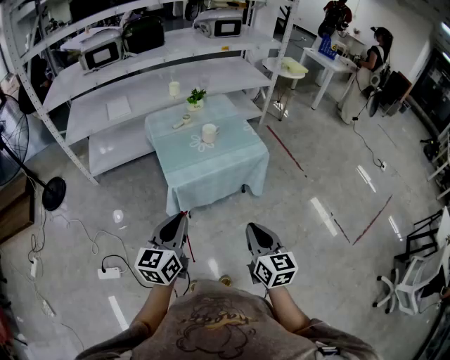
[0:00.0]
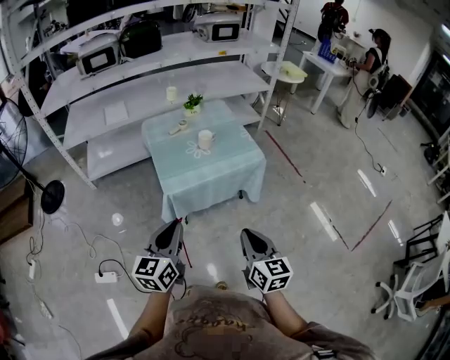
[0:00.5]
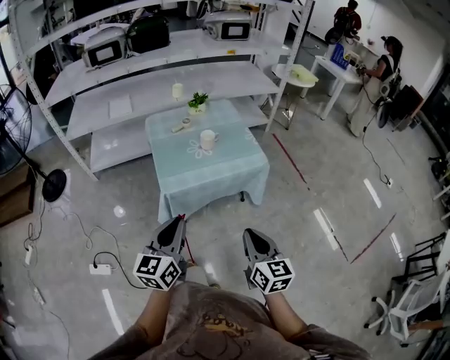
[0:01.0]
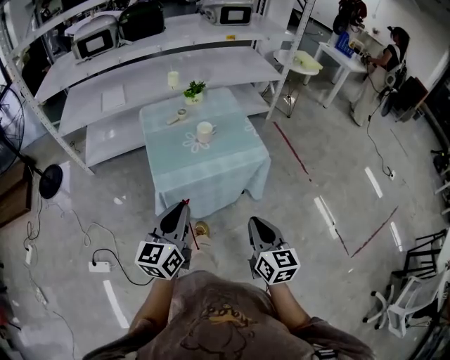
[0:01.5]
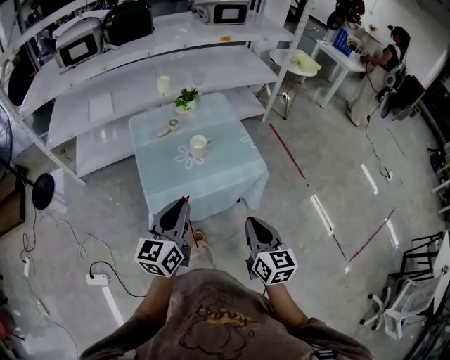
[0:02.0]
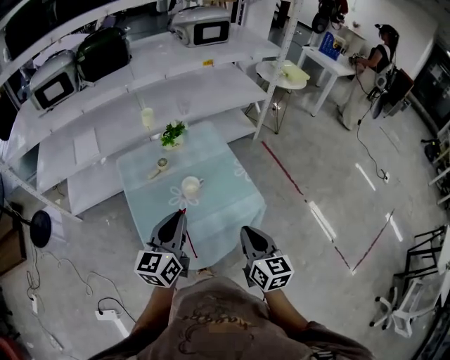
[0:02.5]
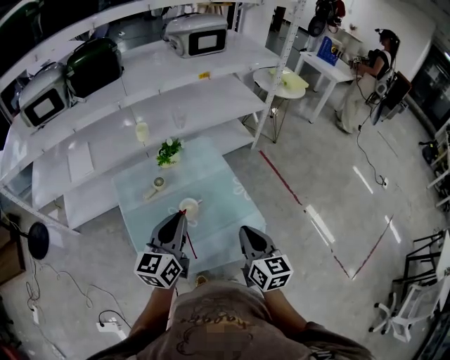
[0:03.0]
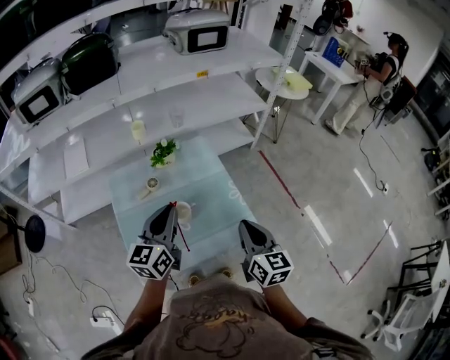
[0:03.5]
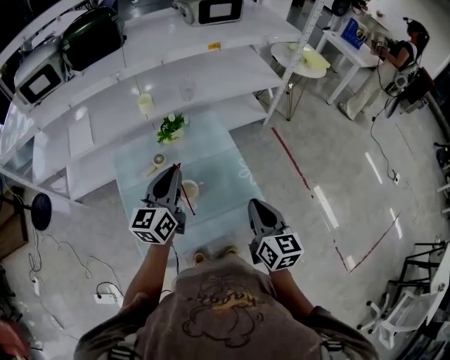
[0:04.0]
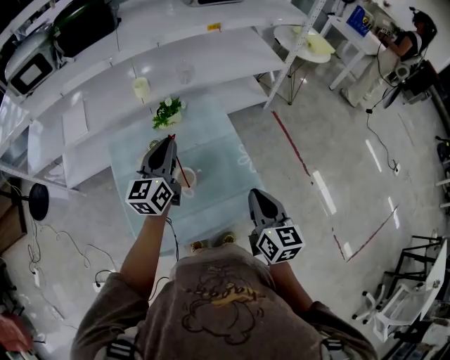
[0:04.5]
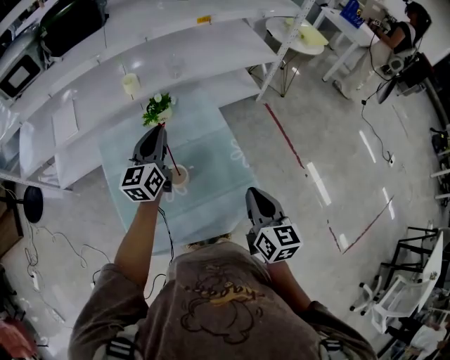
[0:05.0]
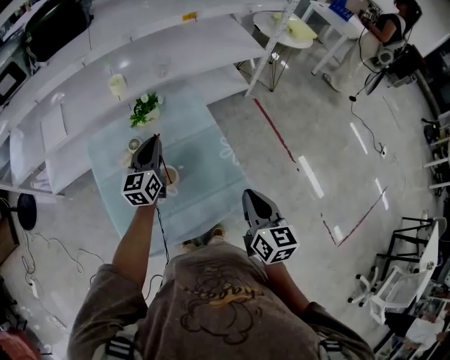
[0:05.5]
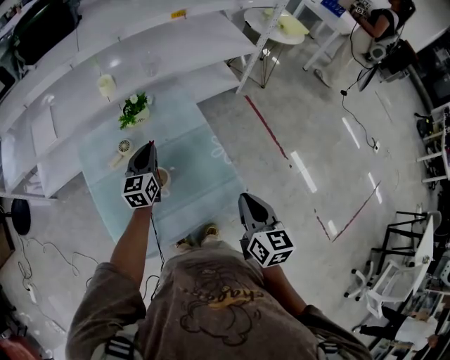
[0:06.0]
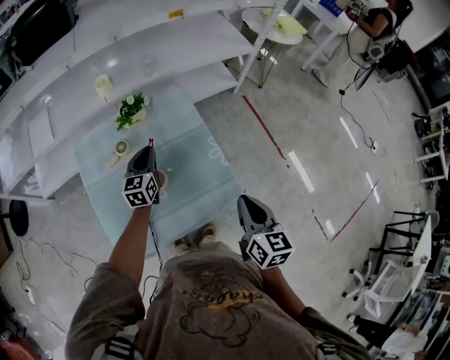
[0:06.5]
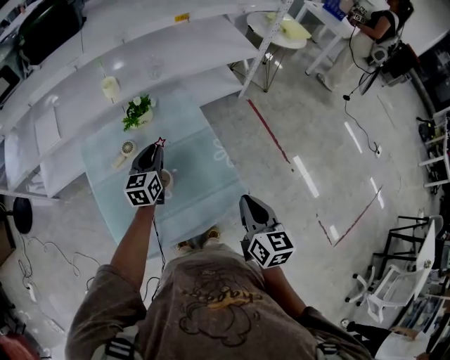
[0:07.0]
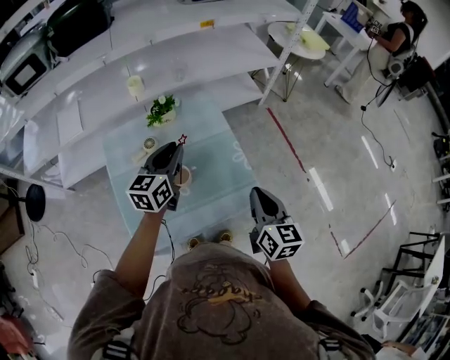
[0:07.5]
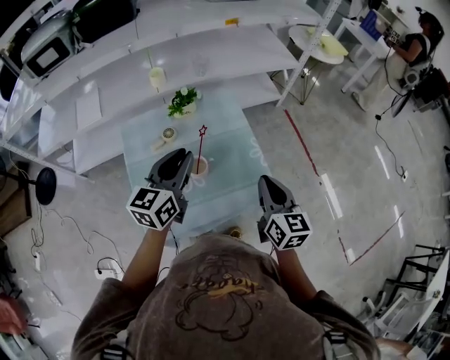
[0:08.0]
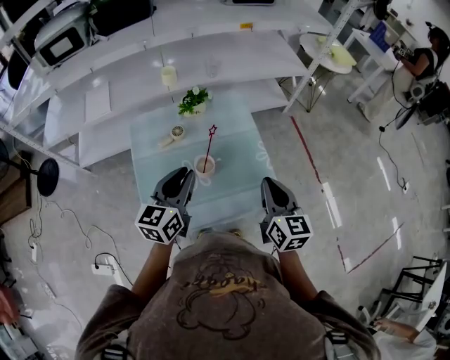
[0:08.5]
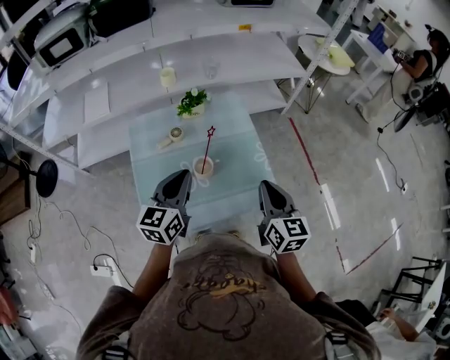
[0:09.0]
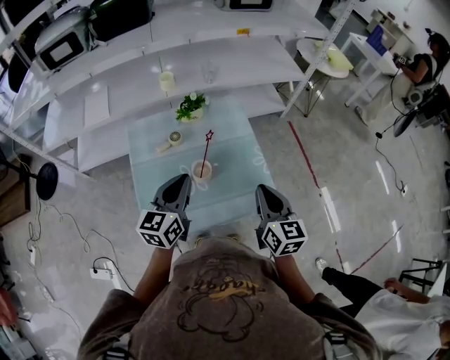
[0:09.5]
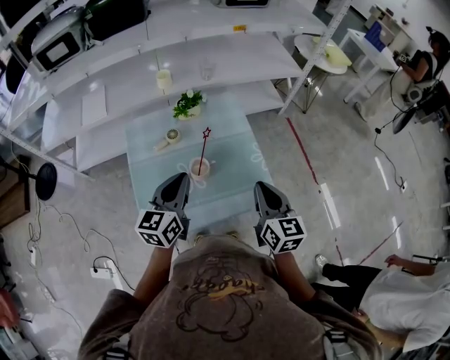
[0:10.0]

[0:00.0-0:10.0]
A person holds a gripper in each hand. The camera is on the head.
0:00.0 to 0:02.0: The two grippers go some 25 cm forward.
0:02.0 to 0:04.0: Both grippers travel together forward, some 35 cm.
0:04.0 to 0:06.0: The left gripper goes some 20 cm downward and forward, while the right gripper moves roughly 5 cm.
0:06.0 to 0:08.0: The right gripper heads to the left, covering some 5 cm; the left gripper moves upward and backward, some 20 cm.
0:08.0 to 0:10.0: The left gripper heads backward, covering about 5 cm.

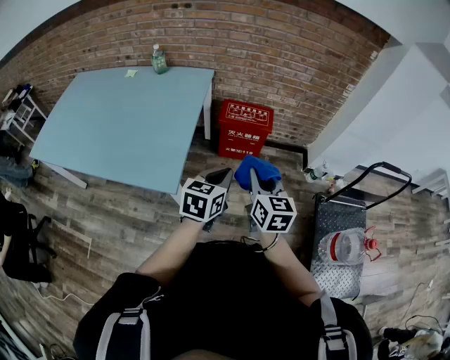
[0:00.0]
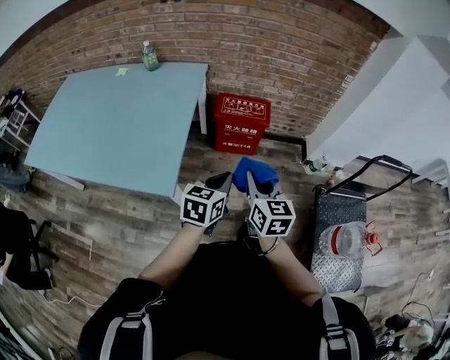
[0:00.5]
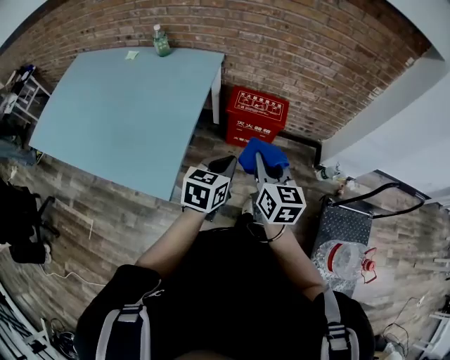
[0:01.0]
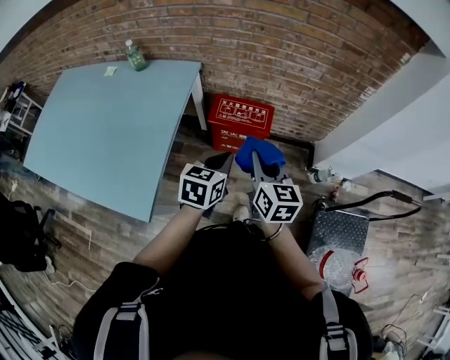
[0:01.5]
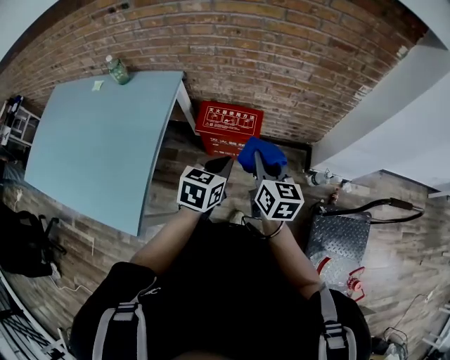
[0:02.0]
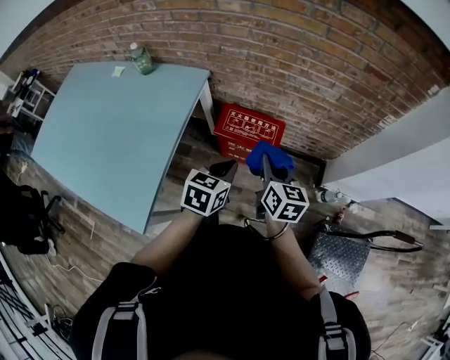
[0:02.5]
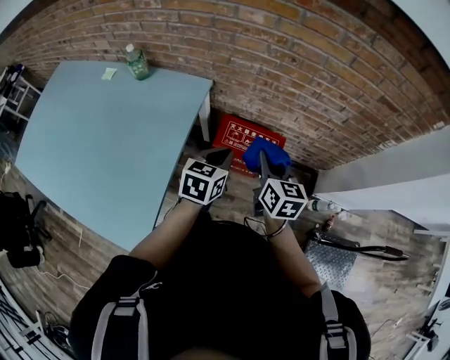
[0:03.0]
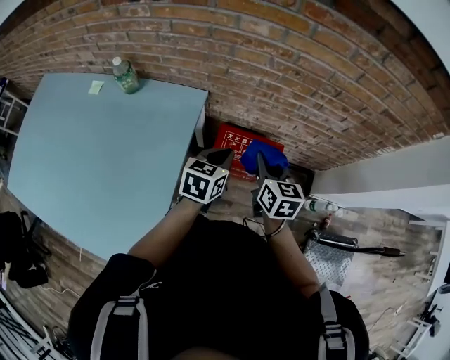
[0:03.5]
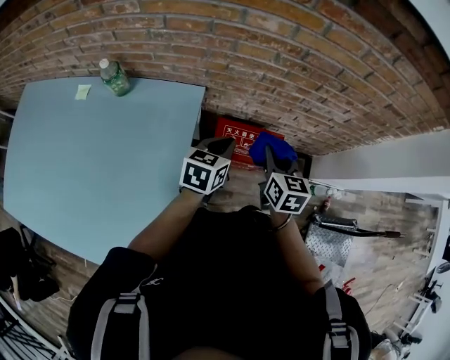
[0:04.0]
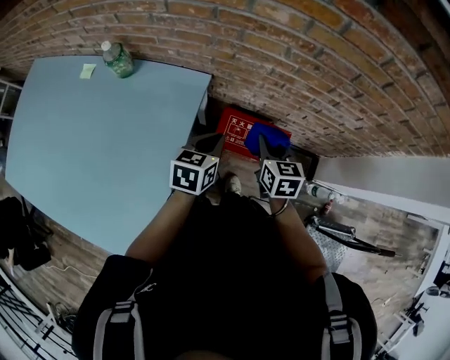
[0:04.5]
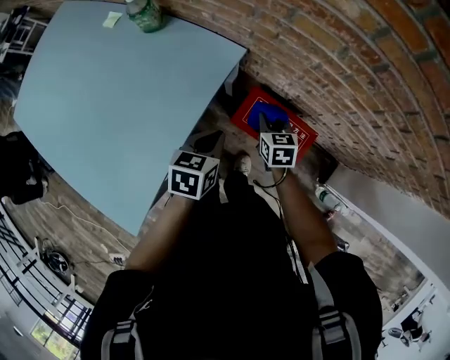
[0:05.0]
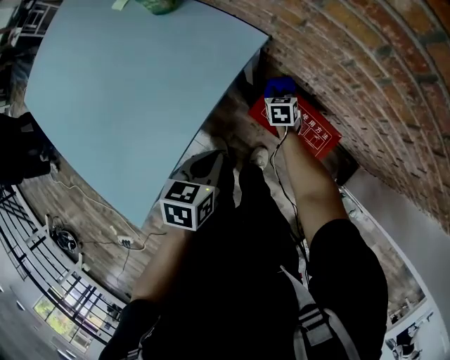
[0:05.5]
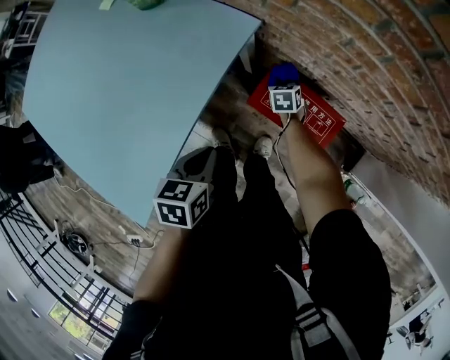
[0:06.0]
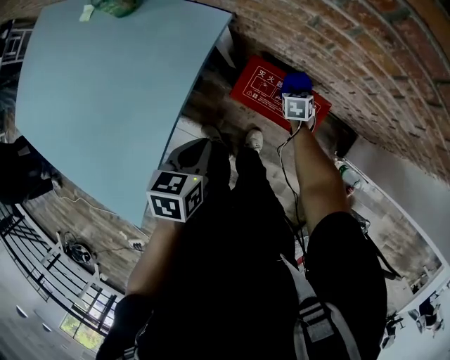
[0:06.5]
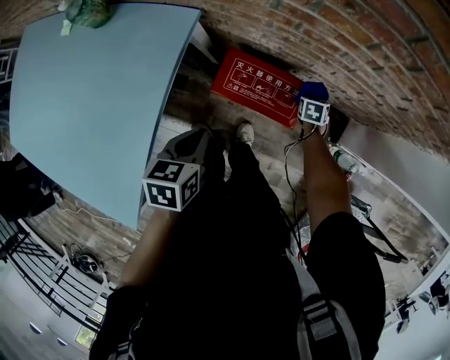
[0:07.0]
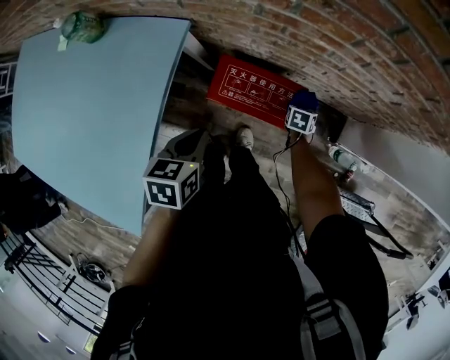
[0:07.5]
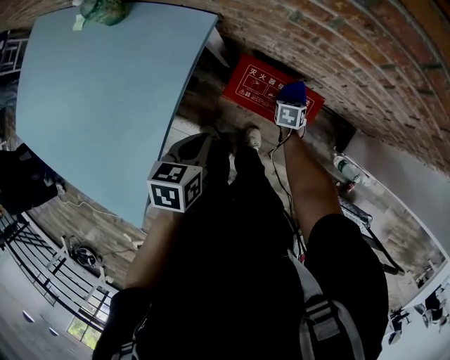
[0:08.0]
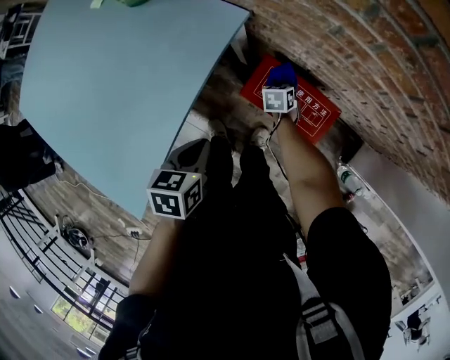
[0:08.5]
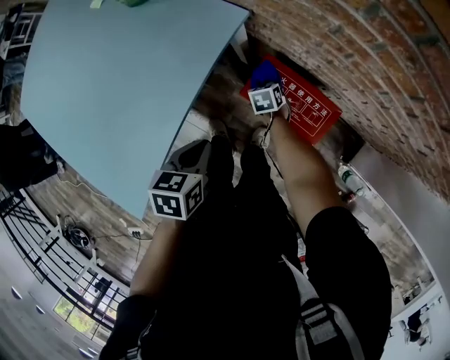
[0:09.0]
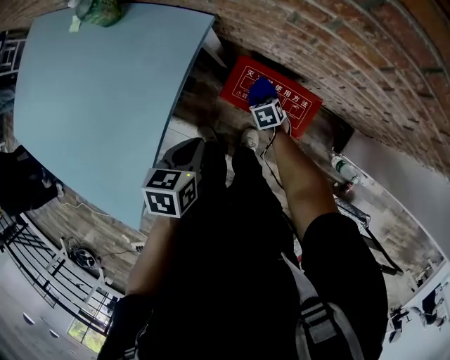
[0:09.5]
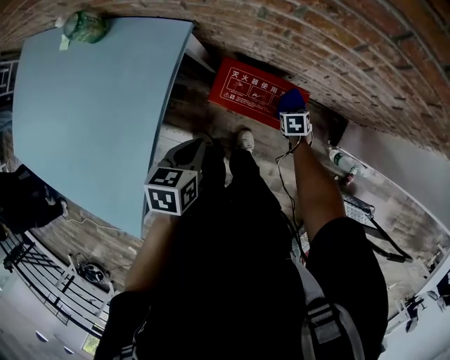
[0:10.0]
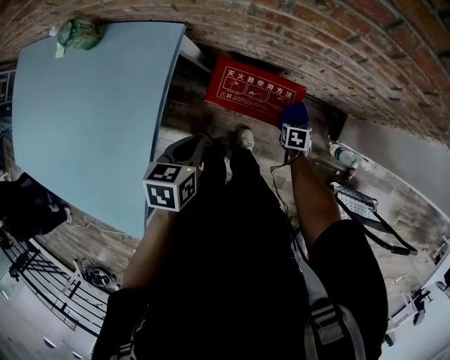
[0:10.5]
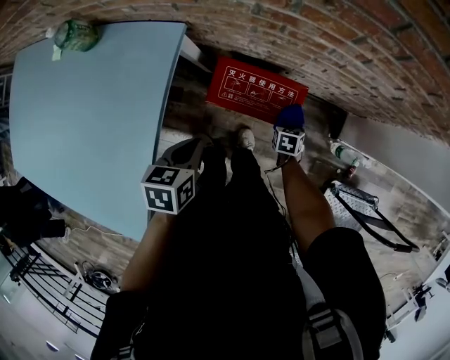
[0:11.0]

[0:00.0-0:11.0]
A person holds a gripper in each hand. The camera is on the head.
0:00.0 to 0:02.0: The grippers both shift forward and to the right by some 35 cm.
0:02.0 to 0:03.5: The two grippers go some 25 cm forward and to the left.
0:03.5 to 0:05.5: The left gripper shifts about 10 cm downward, and changes its angle by some 40 degrees. Meanwhile the right gripper shifts roughly 35 cm downward, and rotates roughly 40 degrees.
0:05.5 to 0:07.5: The left gripper ends up some 10 cm from where it was, while the right gripper moves some 35 cm, and swivels about 40 degrees.
0:07.5 to 0:09.0: The right gripper changes place by approximately 30 cm, and swivels approximately 40 degrees, while the left gripper moves about 10 cm.
0:09.0 to 0:11.0: The right gripper moves approximately 30 cm, and turns by roughly 40 degrees, while the left gripper moves roughly 5 cm.

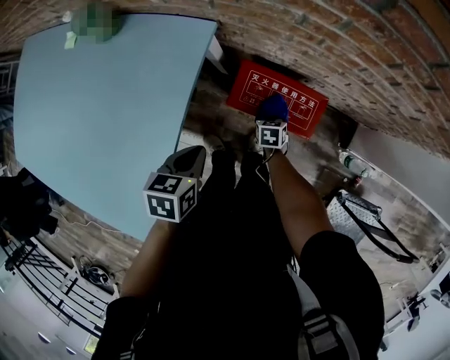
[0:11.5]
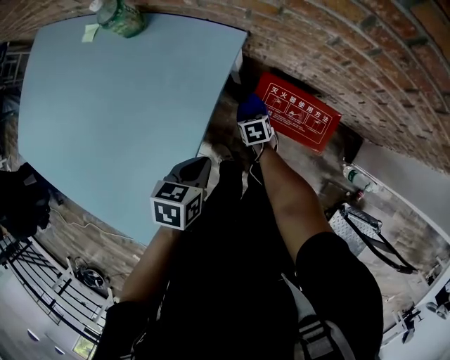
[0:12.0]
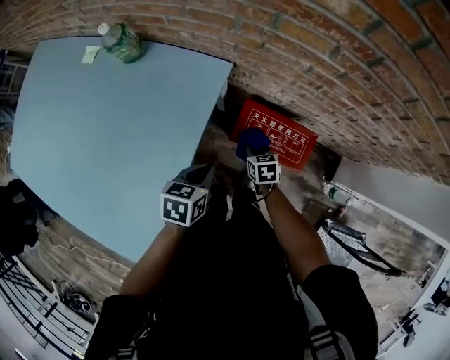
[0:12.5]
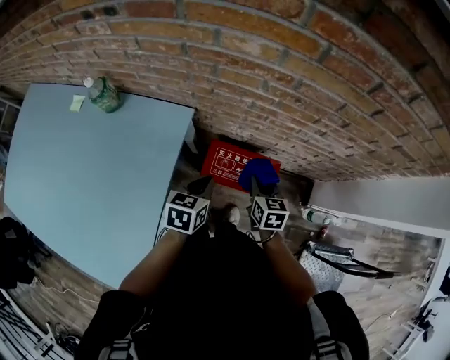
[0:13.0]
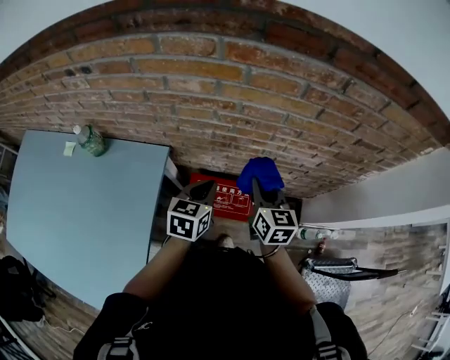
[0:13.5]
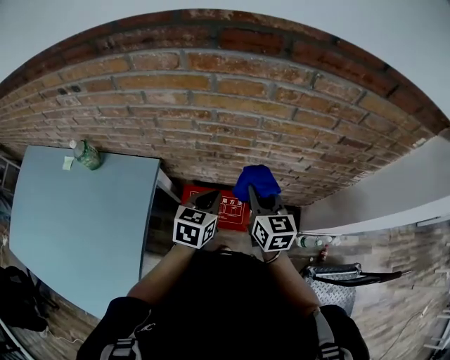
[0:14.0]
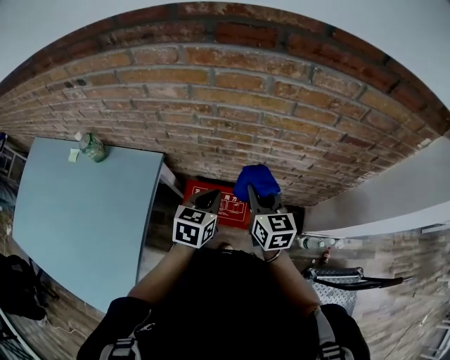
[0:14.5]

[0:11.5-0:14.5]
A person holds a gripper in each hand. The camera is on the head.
0:11.5 to 0:13.0: The right gripper goes some 30 cm upward, and changes its angle by about 30 degrees; the left gripper moves forward, to the right and upward, roughly 15 cm.
0:13.0 to 0:14.5: The right gripper moves upward and to the right, approximately 20 cm, and swivels approximately 20 degrees; the left gripper goes roughly 20 cm to the right and upward.

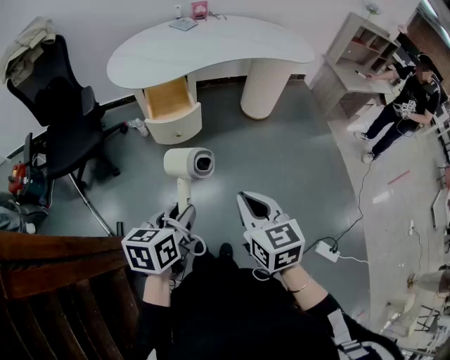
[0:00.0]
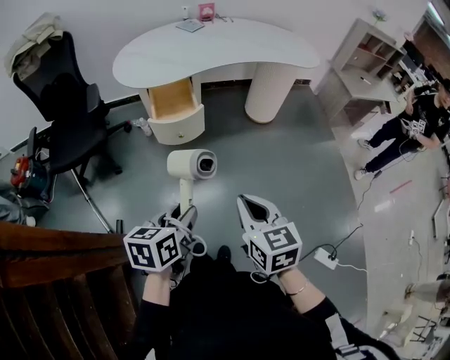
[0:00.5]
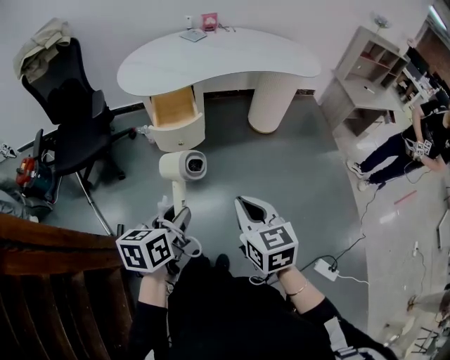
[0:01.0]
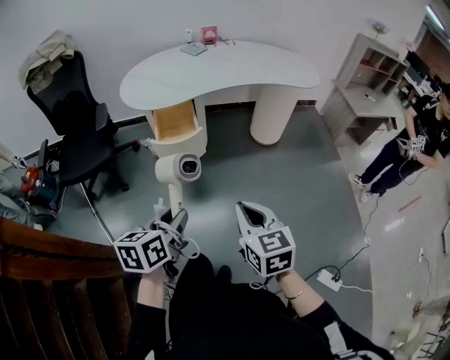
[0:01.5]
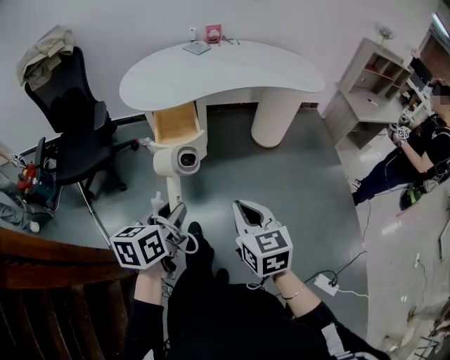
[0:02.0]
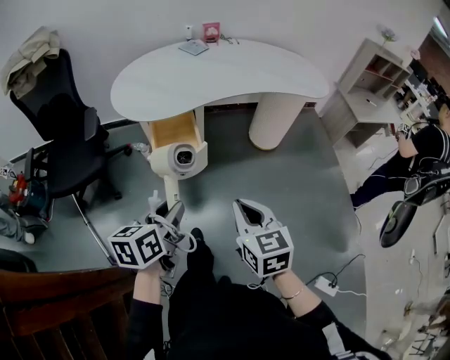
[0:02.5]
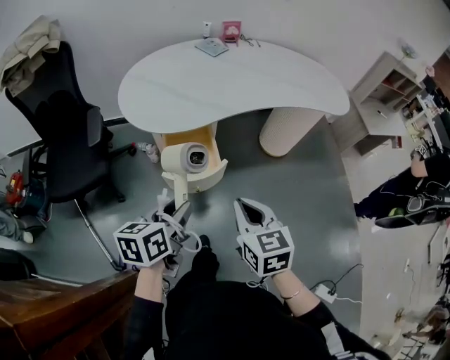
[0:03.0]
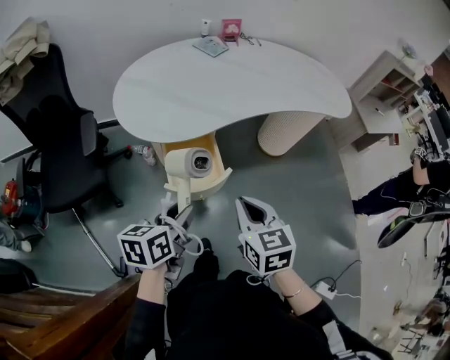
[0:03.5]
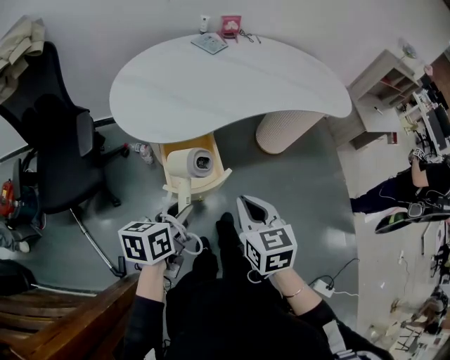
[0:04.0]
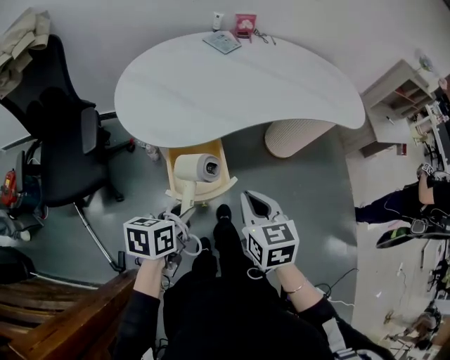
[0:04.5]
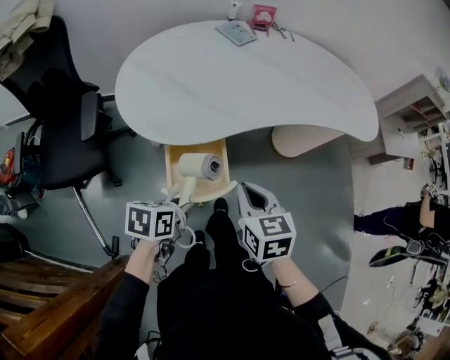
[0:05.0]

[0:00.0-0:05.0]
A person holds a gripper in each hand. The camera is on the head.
0:00.0 to 0:02.5: The grippers both shift forward by roughly 15 cm.
0:02.5 to 0:05.0: The right gripper heads forward and to the left, covering approximately 25 cm. The left gripper goes some 25 cm forward, downward and to the left, and turns by some 30 degrees.
